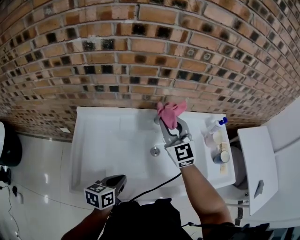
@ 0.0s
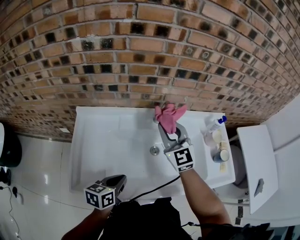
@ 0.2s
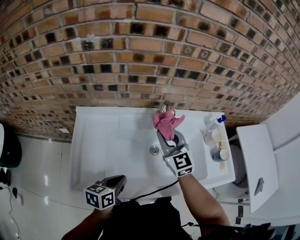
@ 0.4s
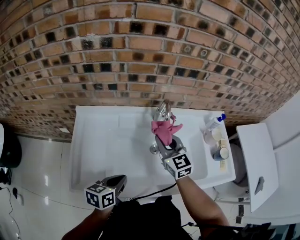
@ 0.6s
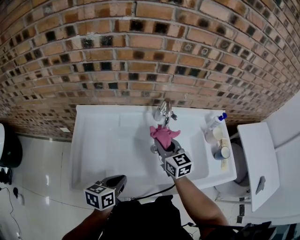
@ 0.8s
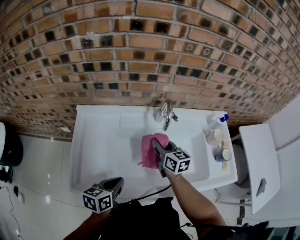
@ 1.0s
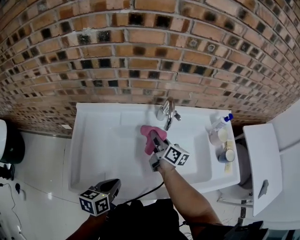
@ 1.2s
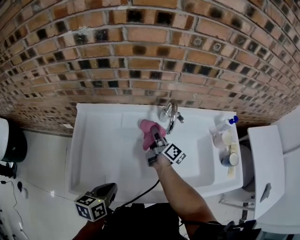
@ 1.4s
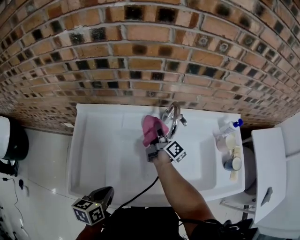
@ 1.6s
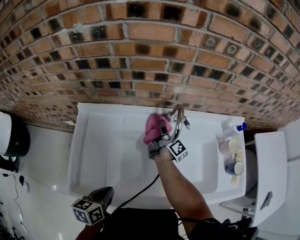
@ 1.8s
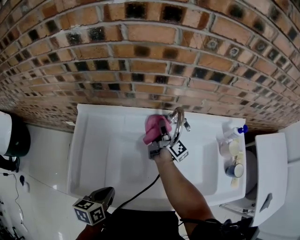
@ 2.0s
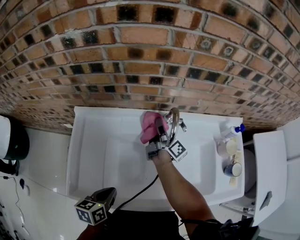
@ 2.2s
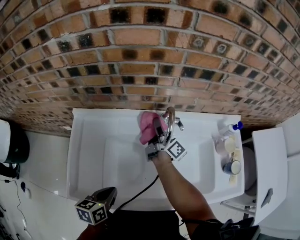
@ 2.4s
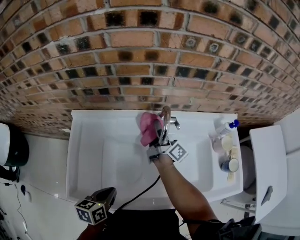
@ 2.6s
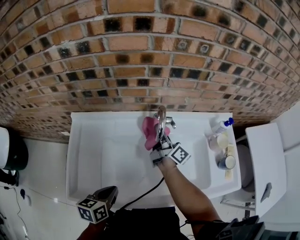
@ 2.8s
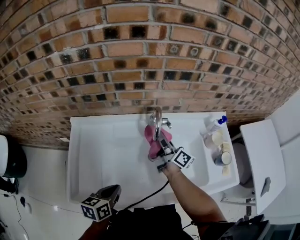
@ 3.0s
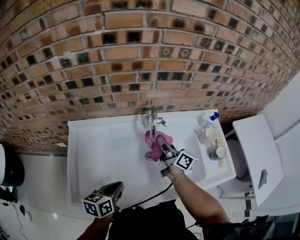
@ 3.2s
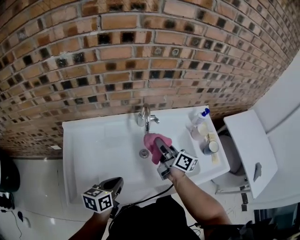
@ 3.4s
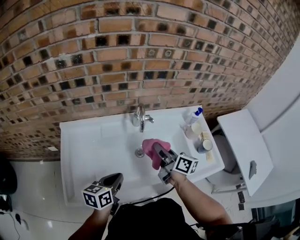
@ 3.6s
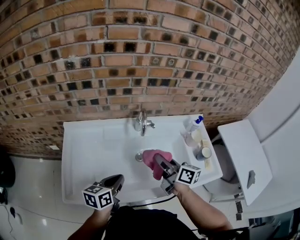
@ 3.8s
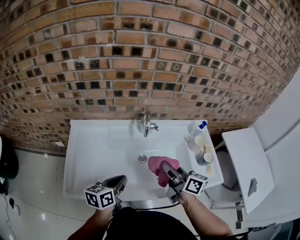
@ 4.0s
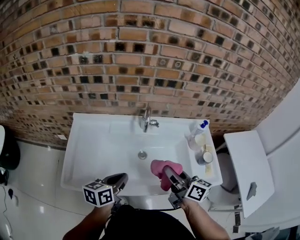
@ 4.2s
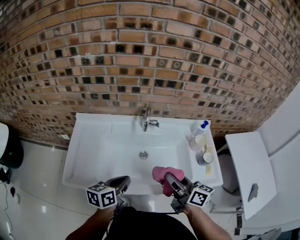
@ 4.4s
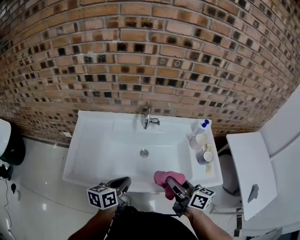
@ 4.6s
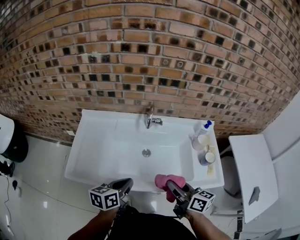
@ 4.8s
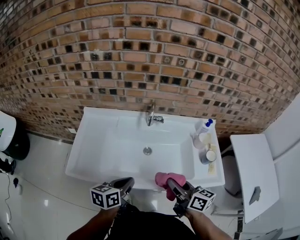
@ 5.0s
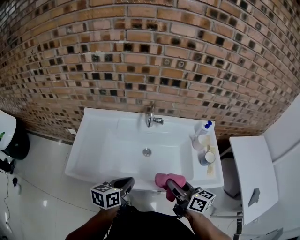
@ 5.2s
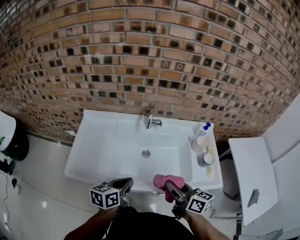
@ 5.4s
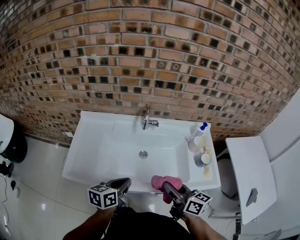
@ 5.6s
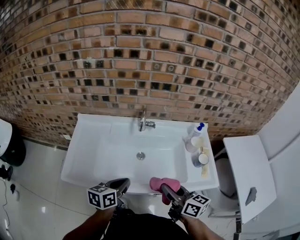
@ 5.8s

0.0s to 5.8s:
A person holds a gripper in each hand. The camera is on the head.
0.0s to 1.4s: The right gripper goes approximately 20 cm downward, and rolls clockwise, seen from behind, by some 90 degrees.
1.4s to 2.8s: The right gripper heads upward, covering some 5 cm.
2.8s to 4.4s: The right gripper moves backward and to the right, roughly 30 cm, and rotates approximately 30 degrees. The left gripper shifts roughly 15 cm to the right and upward.
4.4s to 5.8s: The right gripper goes approximately 5 cm backward.

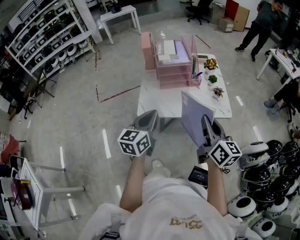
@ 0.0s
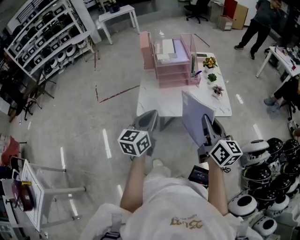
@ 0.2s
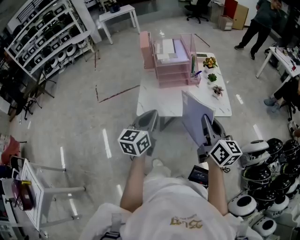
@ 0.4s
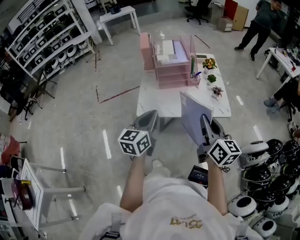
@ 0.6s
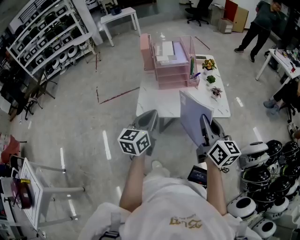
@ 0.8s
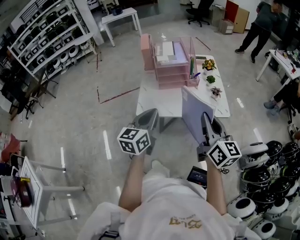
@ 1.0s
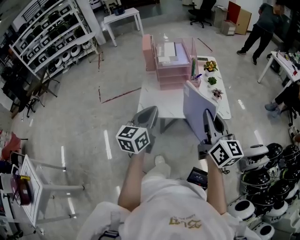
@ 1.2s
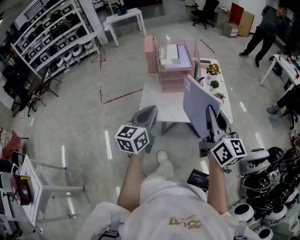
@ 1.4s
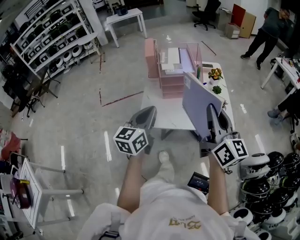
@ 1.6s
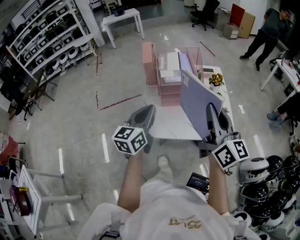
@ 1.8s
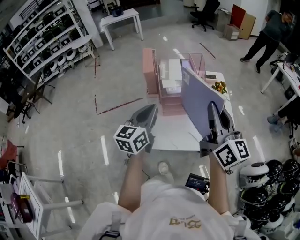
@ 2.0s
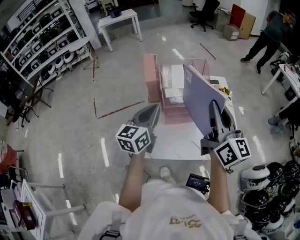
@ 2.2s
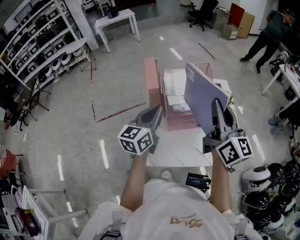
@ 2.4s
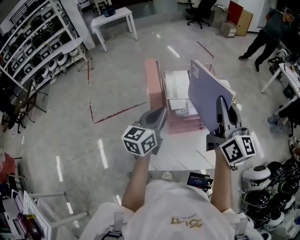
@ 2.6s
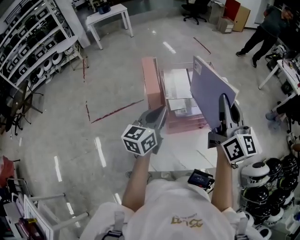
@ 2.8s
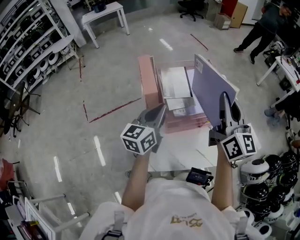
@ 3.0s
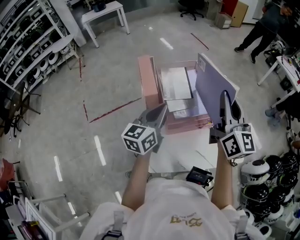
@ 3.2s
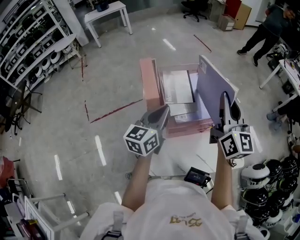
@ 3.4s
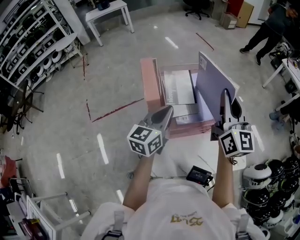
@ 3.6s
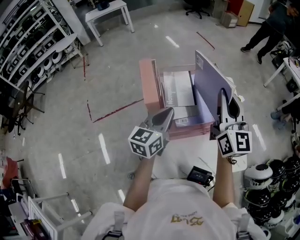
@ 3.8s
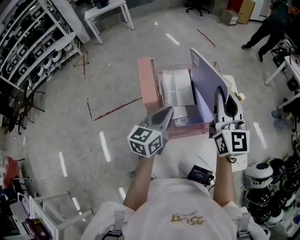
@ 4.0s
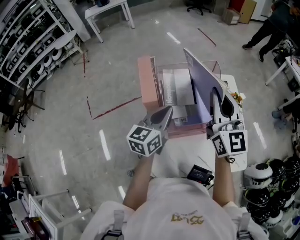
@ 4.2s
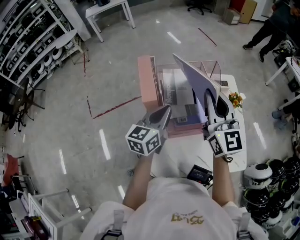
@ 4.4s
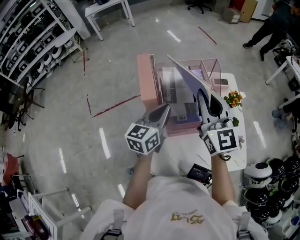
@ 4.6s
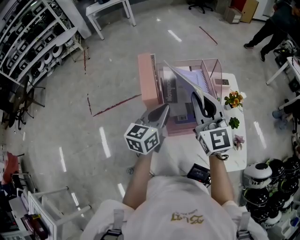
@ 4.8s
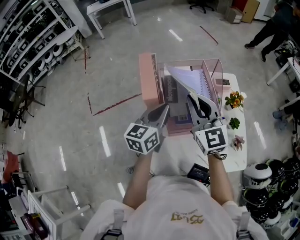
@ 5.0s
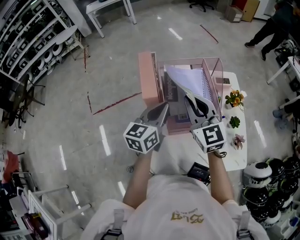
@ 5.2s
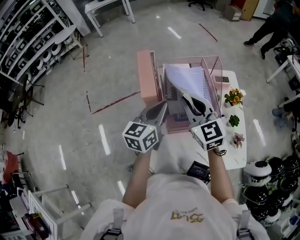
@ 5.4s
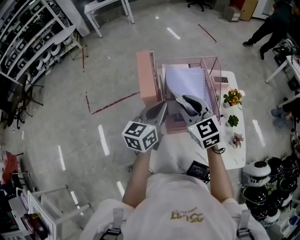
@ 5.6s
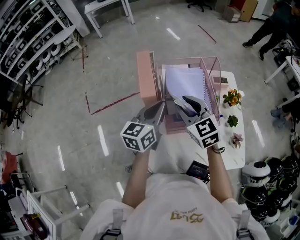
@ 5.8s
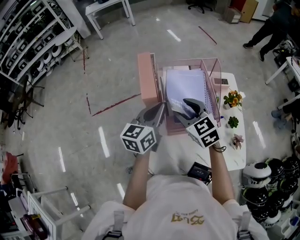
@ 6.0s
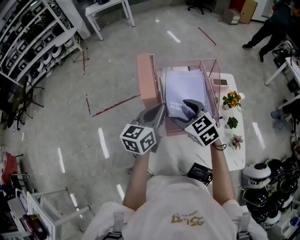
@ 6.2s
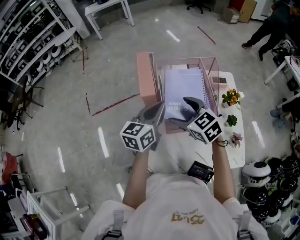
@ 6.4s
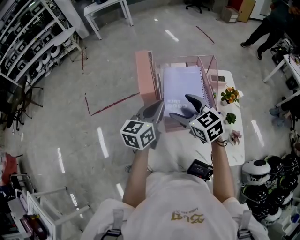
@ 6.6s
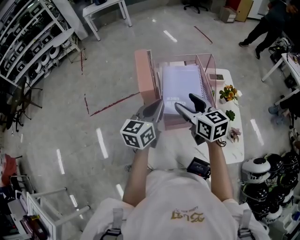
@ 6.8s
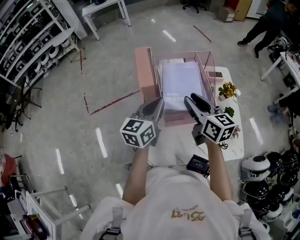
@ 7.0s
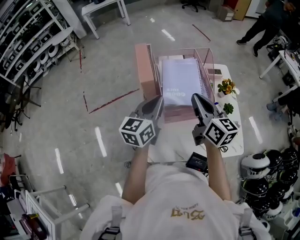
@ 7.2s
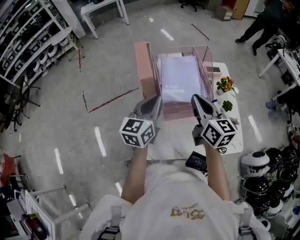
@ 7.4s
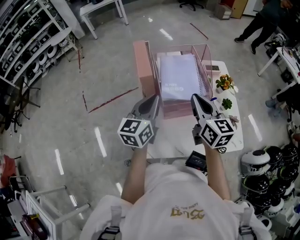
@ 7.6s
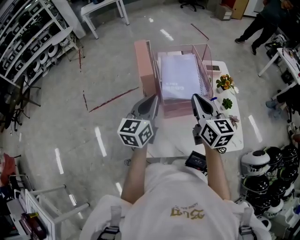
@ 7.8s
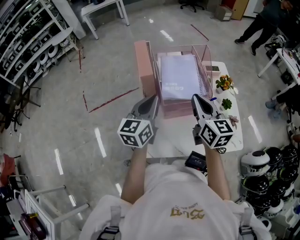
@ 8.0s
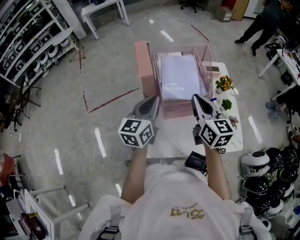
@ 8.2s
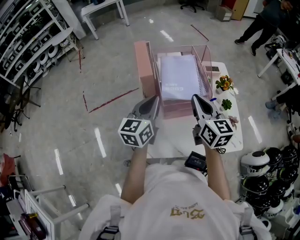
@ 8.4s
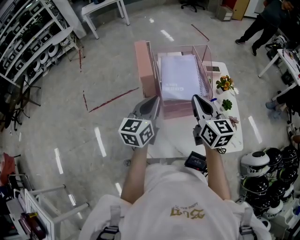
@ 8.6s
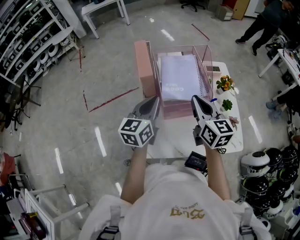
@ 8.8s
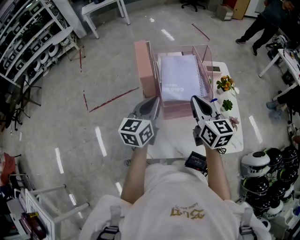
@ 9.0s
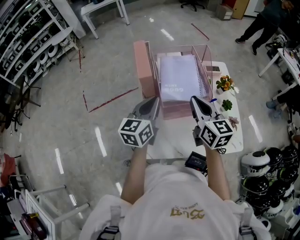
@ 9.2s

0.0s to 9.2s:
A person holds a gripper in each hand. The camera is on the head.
0.0s to 1.6s: The right gripper is displaced upward and forward by approximately 10 cm, while the left gripper moves forward, about 5 cm.
1.6s to 3.0s: The two grippers go roughly 30 cm forward.
3.0s to 4.6s: The left gripper shifts about 5 cm forward; the right gripper goes about 10 cm to the left, forward and downward, and changes its angle by about 20 degrees.
4.6s to 6.2s: The right gripper moves downward and to the left, roughly 15 cm, angles its fingers downward, by roughly 40 degrees, and opens.
6.2s to 7.6s: The left gripper travels backward by roughly 5 cm, while the right gripper shifts about 15 cm to the right, backward and upward, changes its angle by about 40 degrees, and closes.
7.6s to 9.2s: The grippers make only small movements.

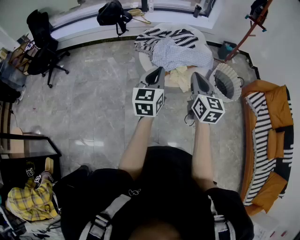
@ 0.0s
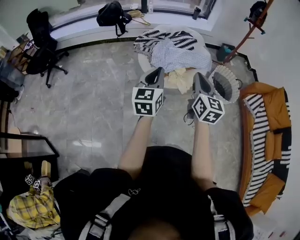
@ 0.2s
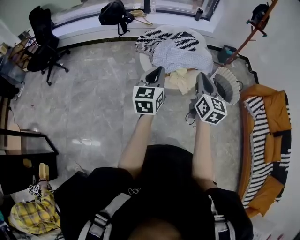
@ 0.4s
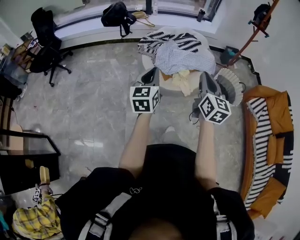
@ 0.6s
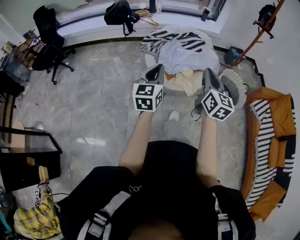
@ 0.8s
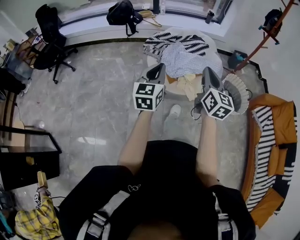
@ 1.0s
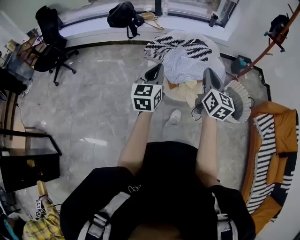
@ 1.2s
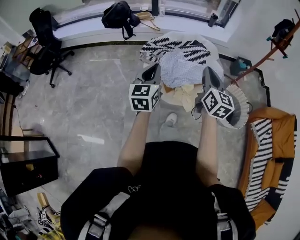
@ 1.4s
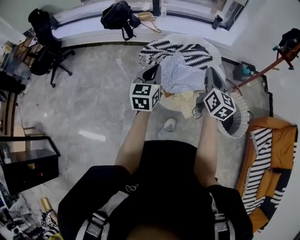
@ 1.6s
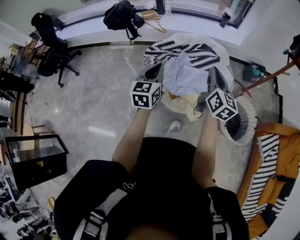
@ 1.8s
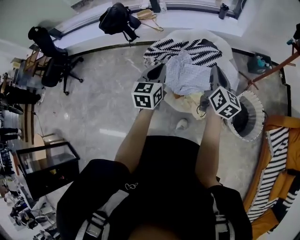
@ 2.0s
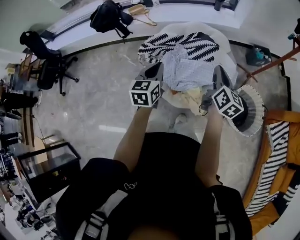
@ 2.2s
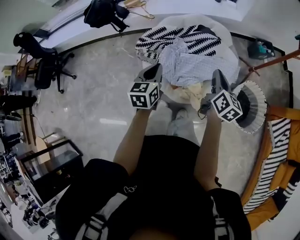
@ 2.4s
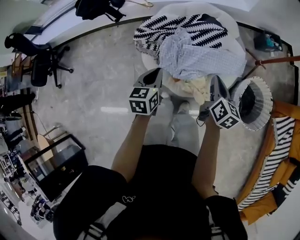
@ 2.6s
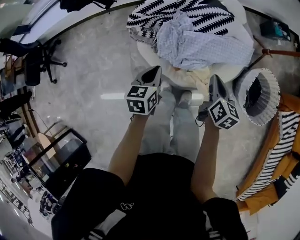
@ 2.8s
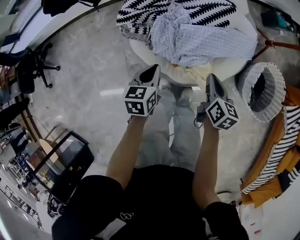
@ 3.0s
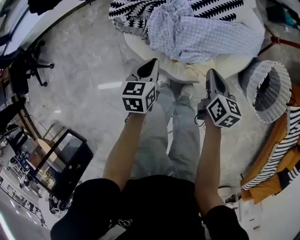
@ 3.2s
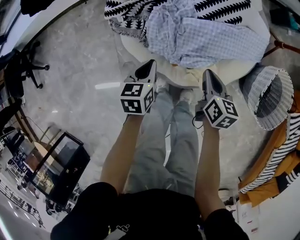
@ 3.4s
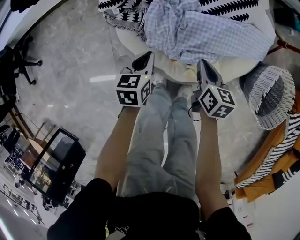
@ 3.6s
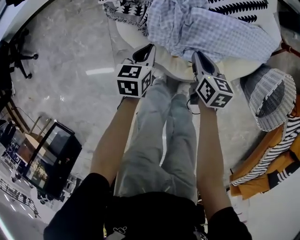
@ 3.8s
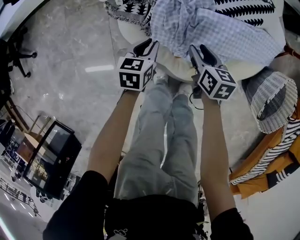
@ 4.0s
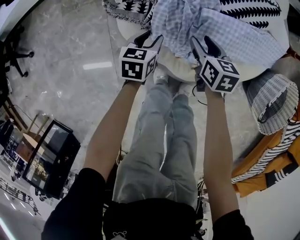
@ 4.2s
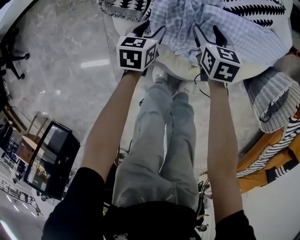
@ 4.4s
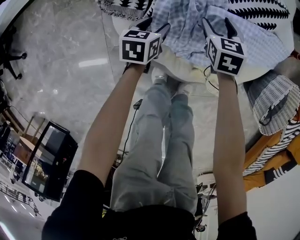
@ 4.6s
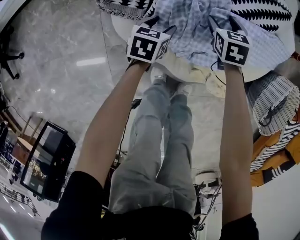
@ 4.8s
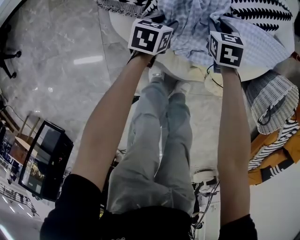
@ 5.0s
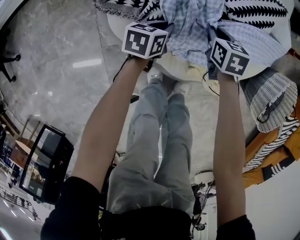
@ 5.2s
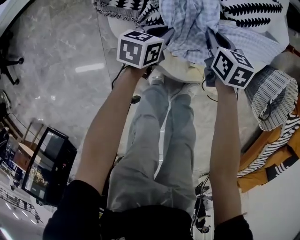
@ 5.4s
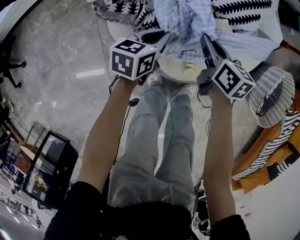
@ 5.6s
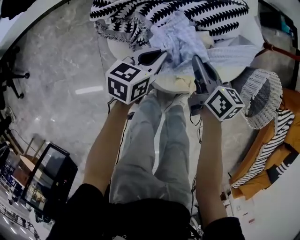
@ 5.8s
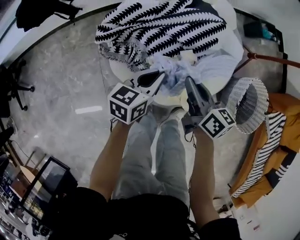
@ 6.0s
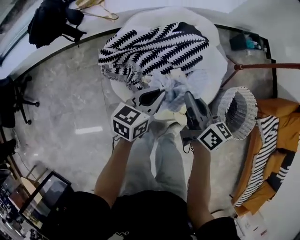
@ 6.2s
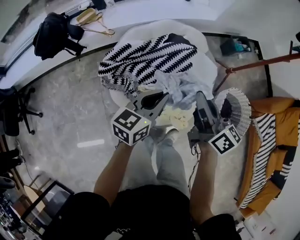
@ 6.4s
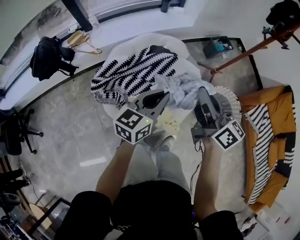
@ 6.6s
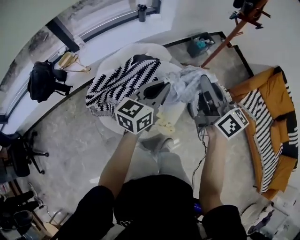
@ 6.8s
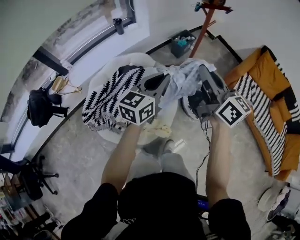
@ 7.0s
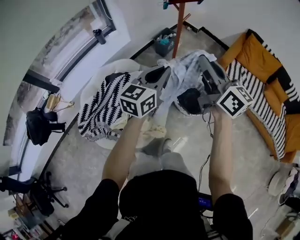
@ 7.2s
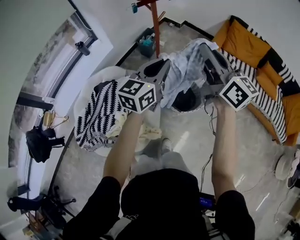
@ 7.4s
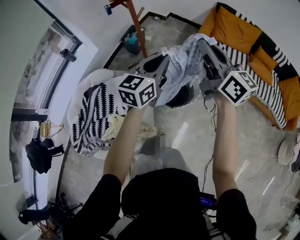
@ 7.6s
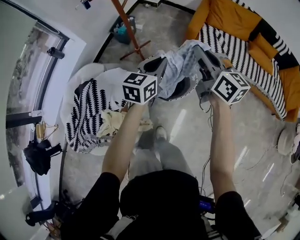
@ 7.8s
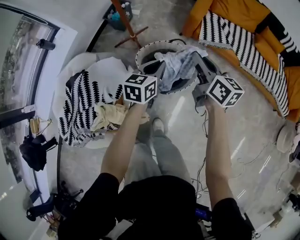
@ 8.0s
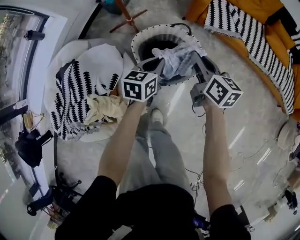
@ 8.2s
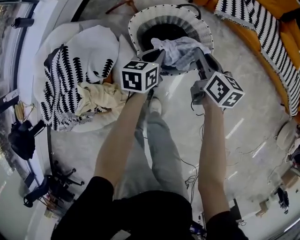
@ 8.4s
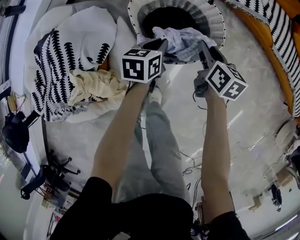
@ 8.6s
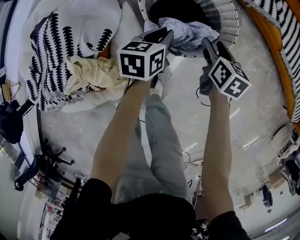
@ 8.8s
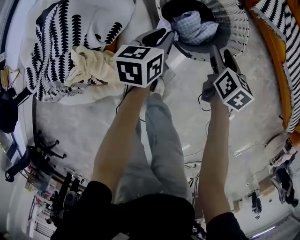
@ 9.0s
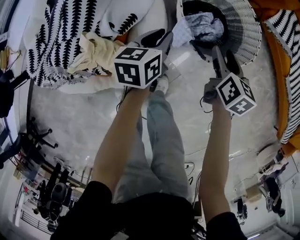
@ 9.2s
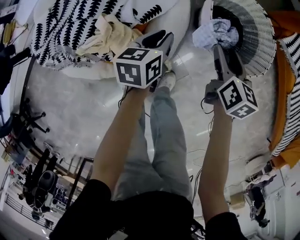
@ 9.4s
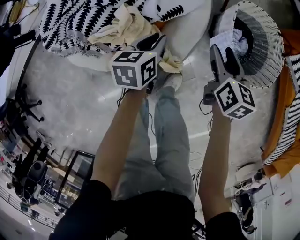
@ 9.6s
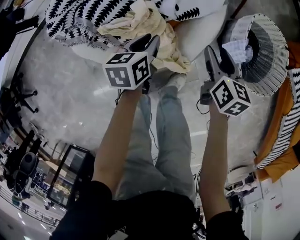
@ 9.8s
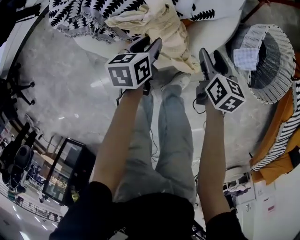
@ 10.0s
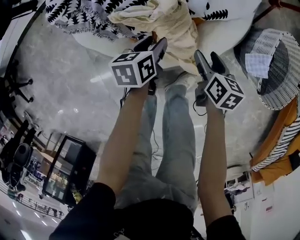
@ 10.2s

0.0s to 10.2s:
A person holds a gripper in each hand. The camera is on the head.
0.0s to 1.4s: Both grippers travel together forward, approximately 25 cm.
1.4s to 3.0s: Both grippers travel together downward and forward, approximately 50 cm. The left gripper tips its fingers downward by about 40 degrees, while the right gripper angles its fingers downward, by roughly 30 degrees.
3.0s to 4.4s: The right gripper is displaced downward, forward and to the left by approximately 35 cm, changes its angle by roughly 30 degrees, and opens up. Meanwhile the left gripper travels downward by roughly 30 cm, and opens its fingers.
4.4s to 5.8s: The right gripper goes some 15 cm upward, swivels roughly 30 degrees, and closes its fingers; the left gripper heads upward and to the right, covering about 20 cm, turns by some 20 degrees, and closes its fingers.
5.8s to 7.2s: The two grippers travel together, approximately 50 cm. Both grippers move upward, about 50 cm. The left gripper swivels approximately 50 degrees, while the right gripper points its fingers some 30 degrees further upward.
7.2s to 8.8s: Both grippers travel together downward, some 60 cm. The left gripper tips its fingers downward by about 30 degrees. Meanwhile the right gripper points its fingers roughly 50 degrees further downward, and opens its fingers.
8.8s to 10.2s: The pair of grippers is taken about 50 cm. The left gripper turns by roughly 50 degrees, and opens. Meanwhile the right gripper turns by roughly 40 degrees.
